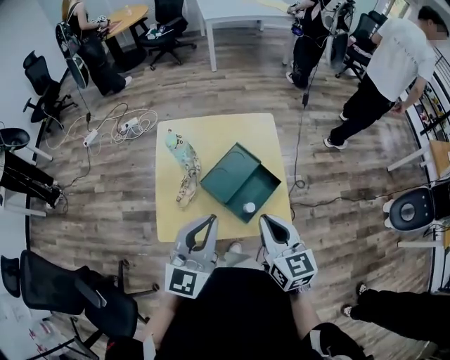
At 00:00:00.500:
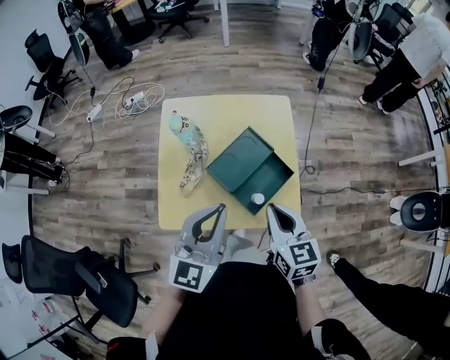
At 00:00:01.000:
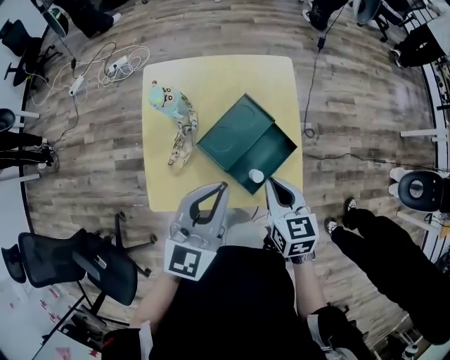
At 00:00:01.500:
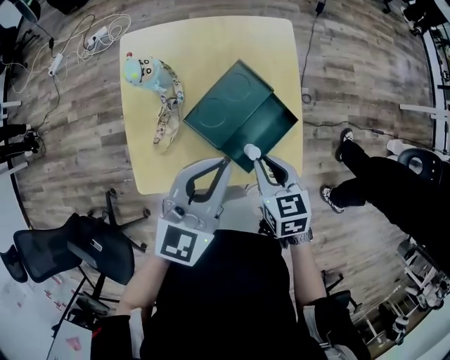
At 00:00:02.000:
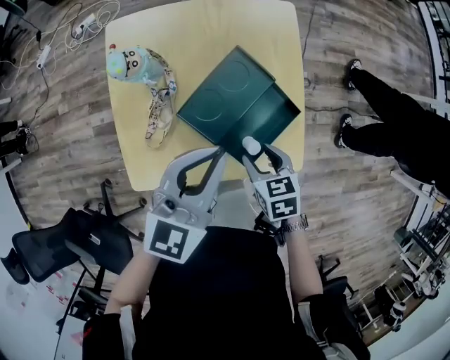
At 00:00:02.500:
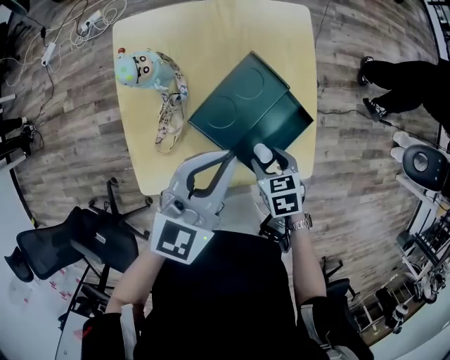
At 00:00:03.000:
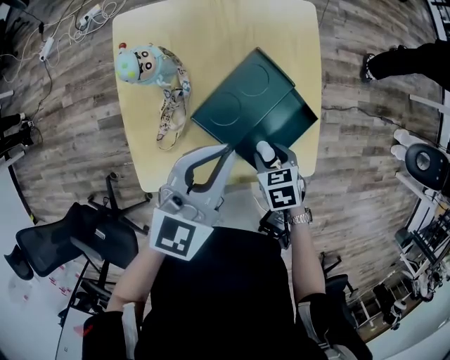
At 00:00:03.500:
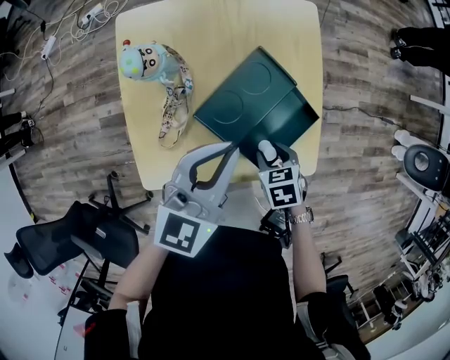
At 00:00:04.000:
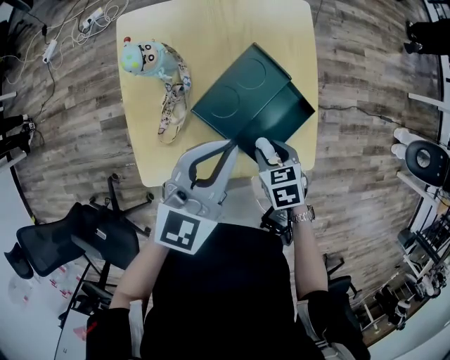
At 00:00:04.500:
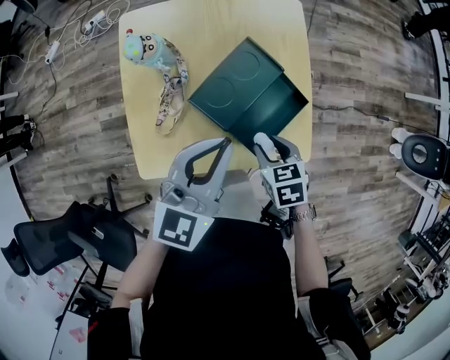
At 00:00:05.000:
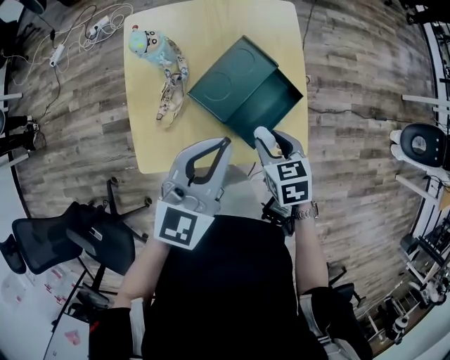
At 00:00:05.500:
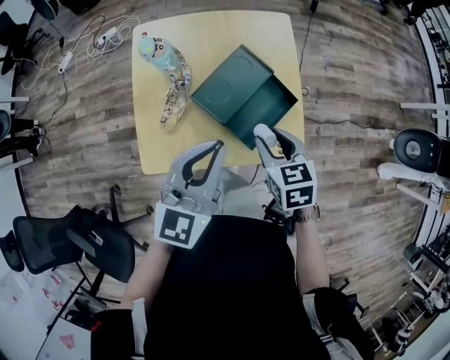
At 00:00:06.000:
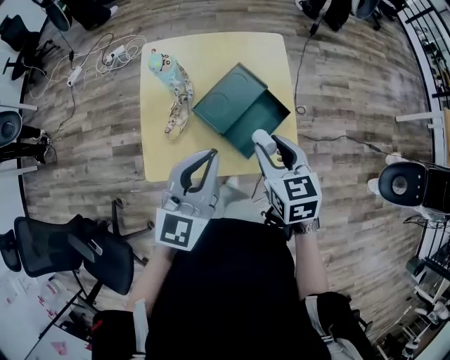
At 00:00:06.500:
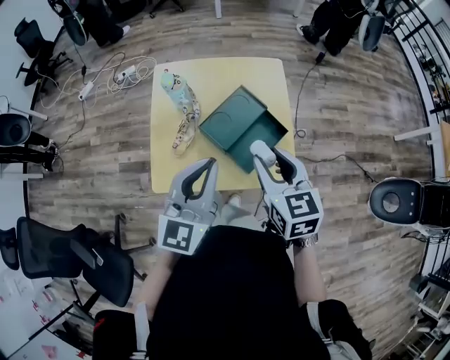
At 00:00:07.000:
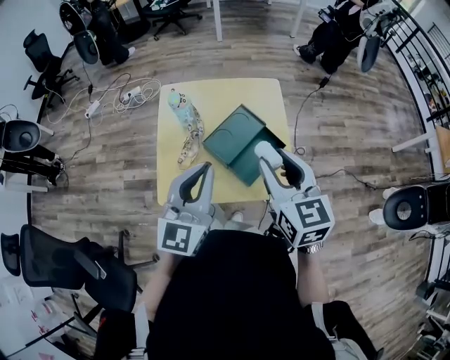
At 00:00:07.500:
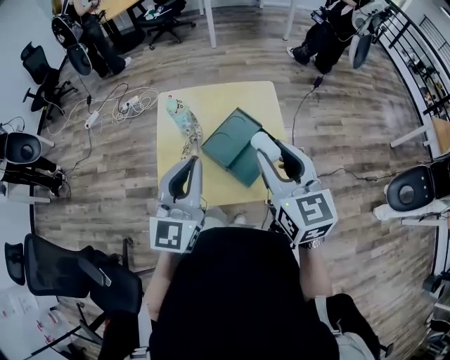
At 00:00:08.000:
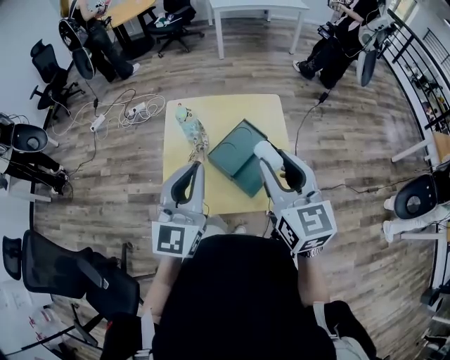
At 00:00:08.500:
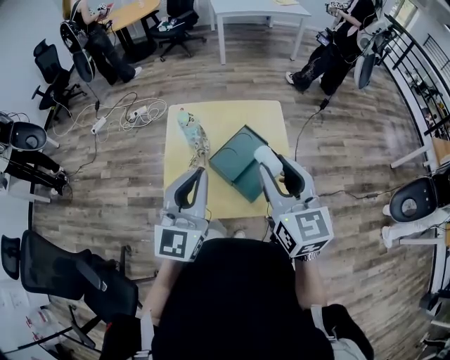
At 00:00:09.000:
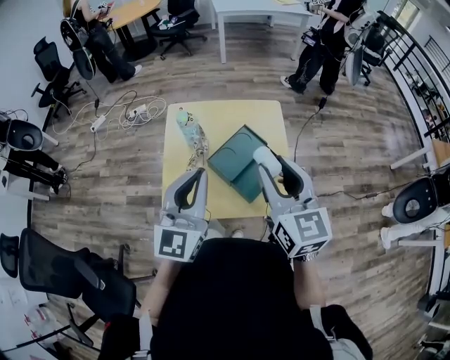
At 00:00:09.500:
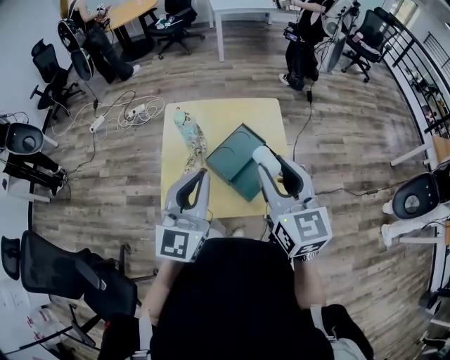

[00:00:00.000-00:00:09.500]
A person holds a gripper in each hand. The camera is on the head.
00:00:00.000 to 00:00:02.000: The right gripper shifts approximately 25 cm downward, points its fingers approximately 40 degrees further downward, and opens up; the left gripper goes about 15 cm forward and downward.
00:00:02.000 to 00:00:04.000: The grippers stay close to where they were, moving slightly.
00:00:04.000 to 00:00:05.500: The left gripper is displaced backward by some 10 cm, while the right gripper travels upward by about 15 cm, and changes its angle by some 20 degrees.
00:00:05.500 to 00:00:07.500: The right gripper goes approximately 25 cm upward, and angles its fingers upward, by approximately 40 degrees. The left gripper moves upward, about 15 cm.
00:00:07.500 to 00:00:09.500: The grippers make only small movements.

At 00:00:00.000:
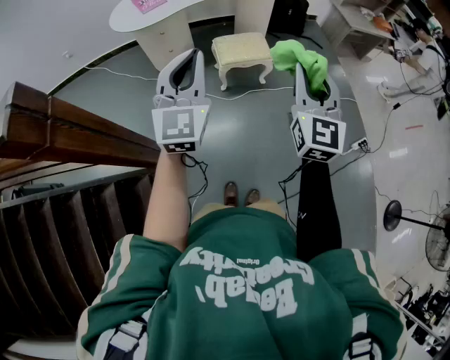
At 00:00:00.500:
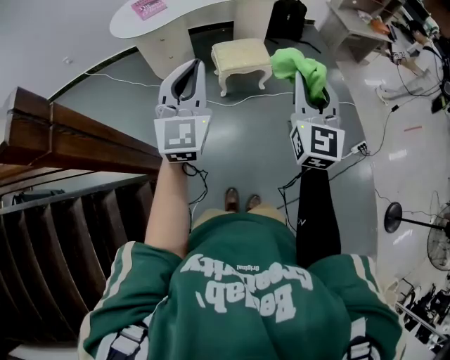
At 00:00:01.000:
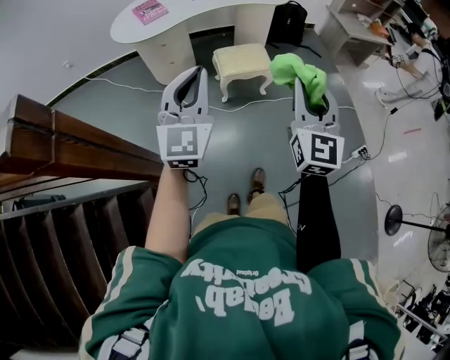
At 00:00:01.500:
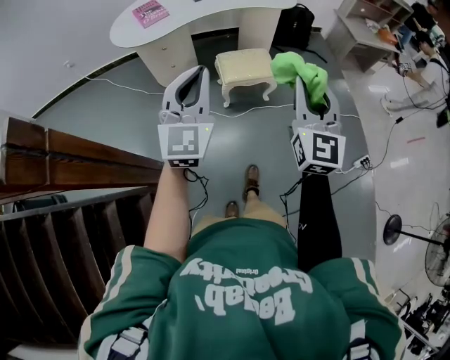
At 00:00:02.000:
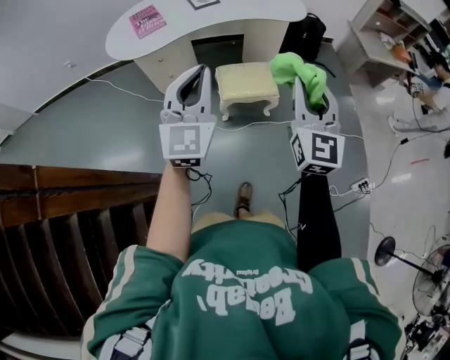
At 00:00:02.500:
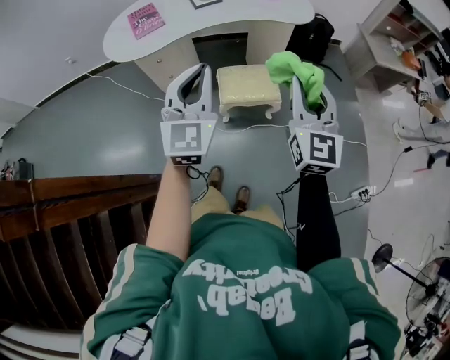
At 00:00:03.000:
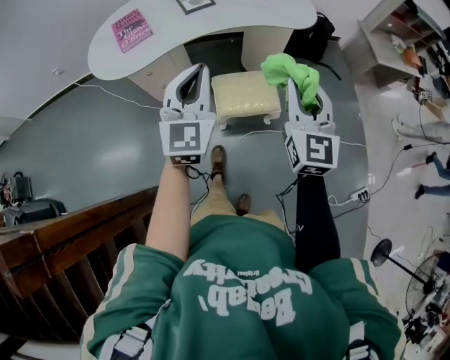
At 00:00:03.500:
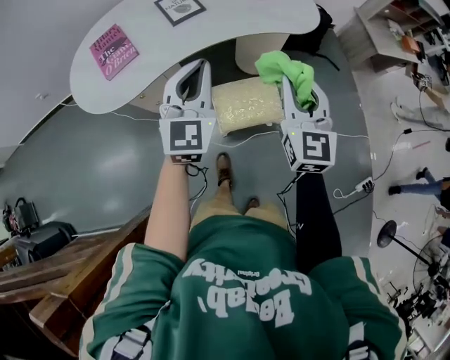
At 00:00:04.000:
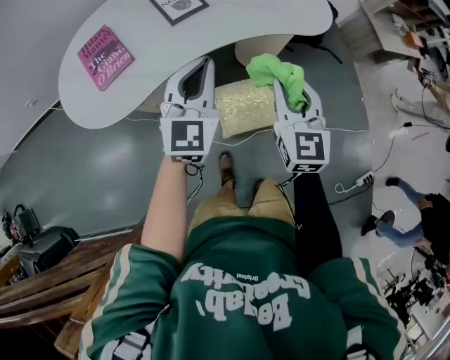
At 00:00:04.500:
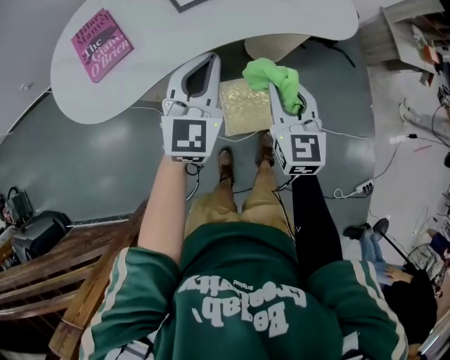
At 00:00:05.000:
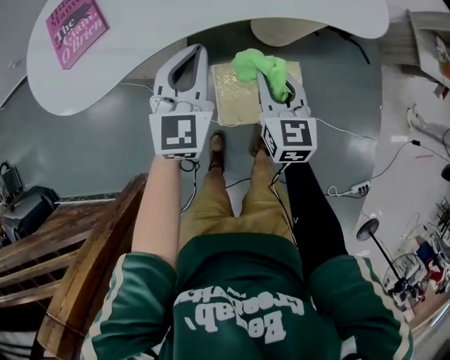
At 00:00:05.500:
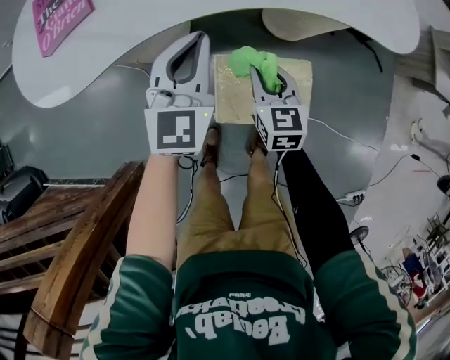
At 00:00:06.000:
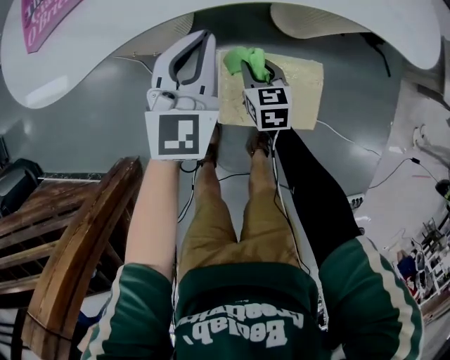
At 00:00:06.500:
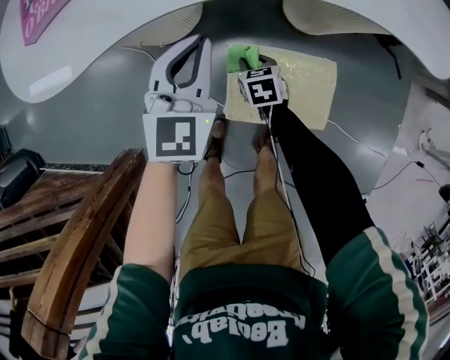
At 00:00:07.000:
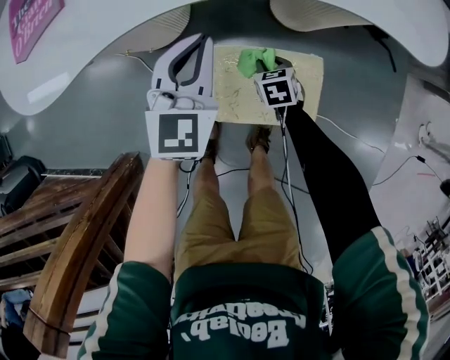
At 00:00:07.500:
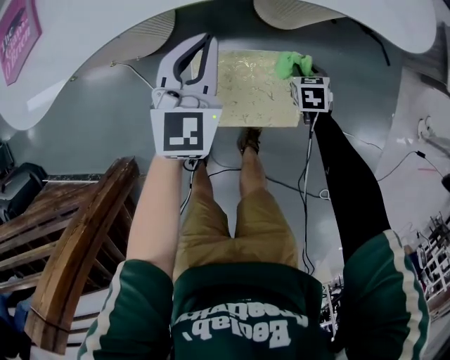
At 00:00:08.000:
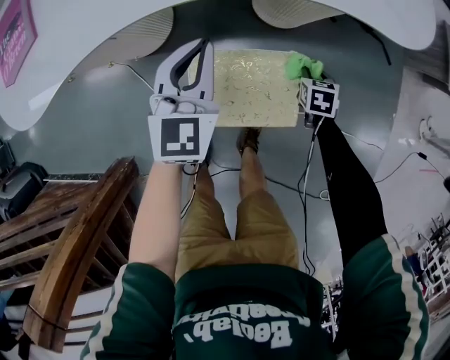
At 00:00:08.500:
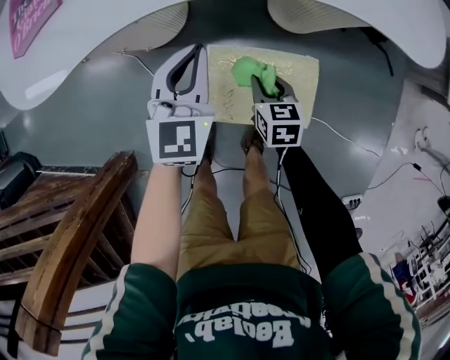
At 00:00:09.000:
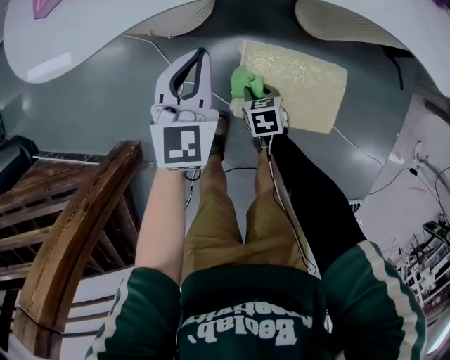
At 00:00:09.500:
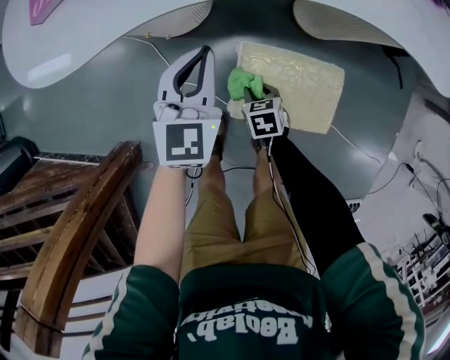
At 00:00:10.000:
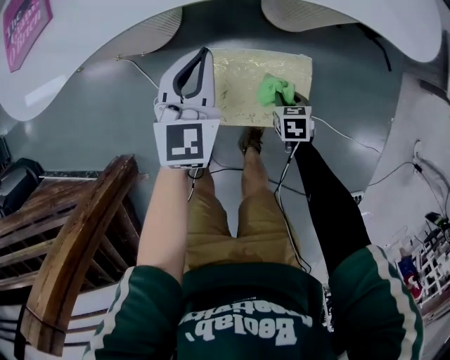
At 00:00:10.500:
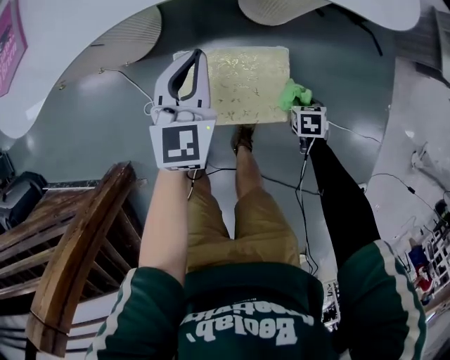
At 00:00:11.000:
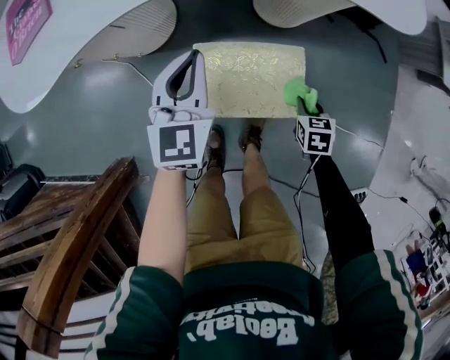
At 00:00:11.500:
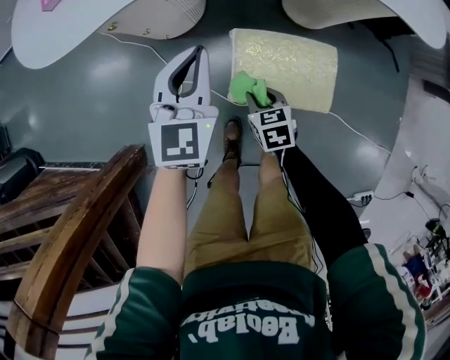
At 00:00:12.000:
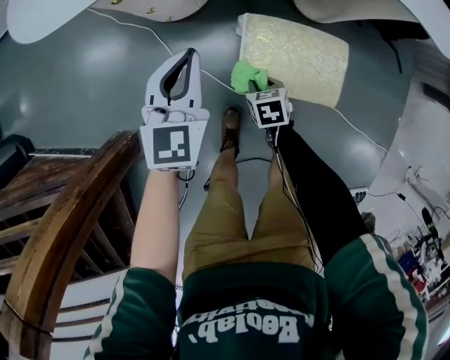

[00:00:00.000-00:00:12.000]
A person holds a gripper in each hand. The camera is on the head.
00:00:00.000 to 00:00:02.000: The two grippers go about 20 cm forward.
00:00:02.000 to 00:00:04.000: The two grippers go approximately 40 cm forward.
00:00:04.000 to 00:00:06.000: The left gripper travels downward by roughly 25 cm; the right gripper goes about 40 cm downward, and changes its angle by roughly 40 degrees.
00:00:06.000 to 00:00:08.000: The left gripper is displaced to the right by about 10 cm. The right gripper is displaced to the right by some 30 cm, and changes its angle by some 30 degrees.
00:00:08.000 to 00:00:10.000: The right gripper reaches about 10 cm upward, then returns.
00:00:10.000 to 00:00:12.000: The right gripper reaches some 5 cm upward, then returns, while the left gripper changes place by some 20 cm.

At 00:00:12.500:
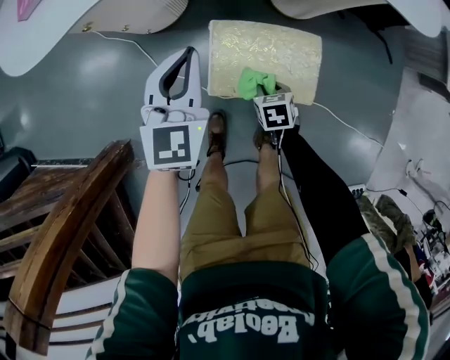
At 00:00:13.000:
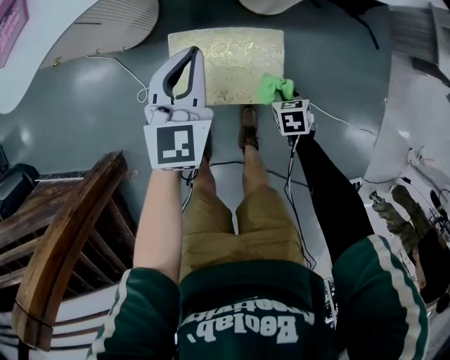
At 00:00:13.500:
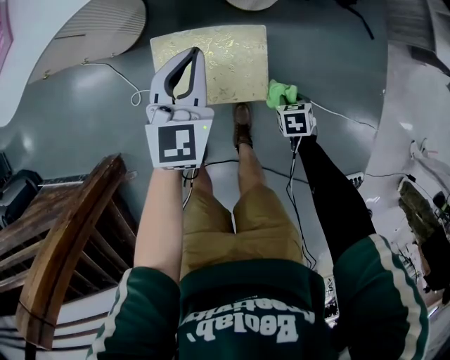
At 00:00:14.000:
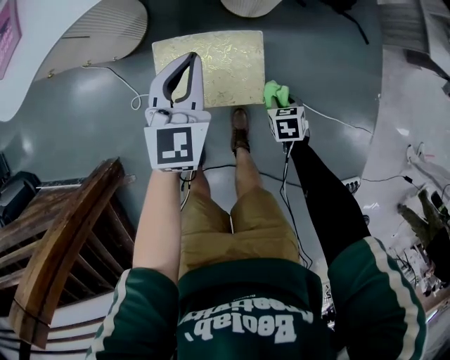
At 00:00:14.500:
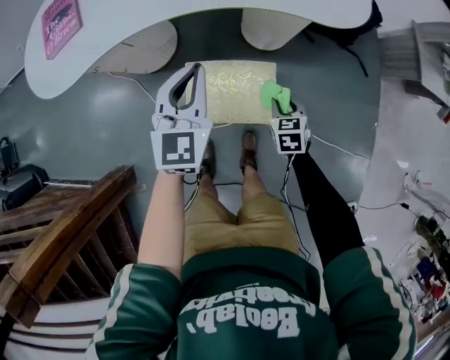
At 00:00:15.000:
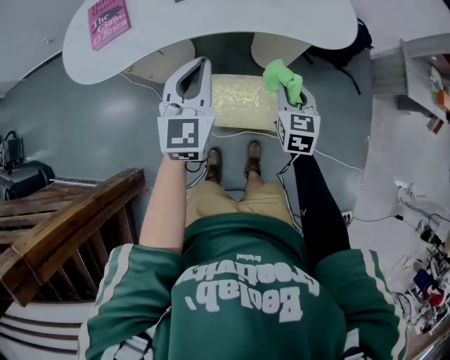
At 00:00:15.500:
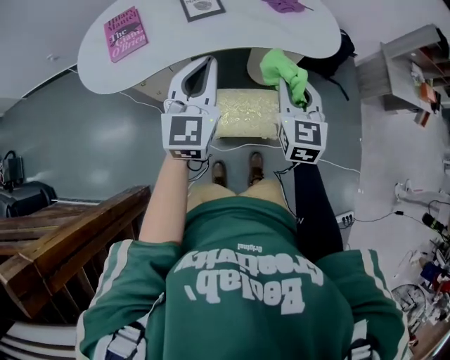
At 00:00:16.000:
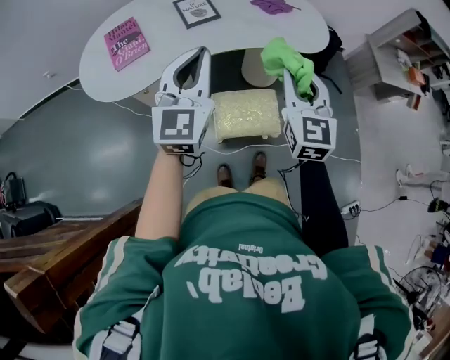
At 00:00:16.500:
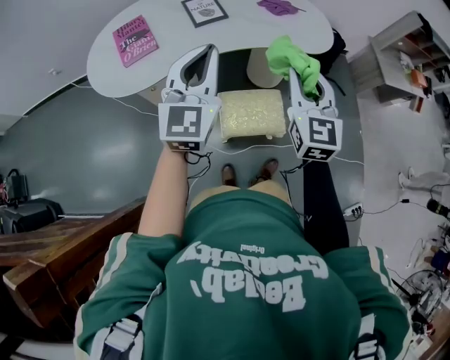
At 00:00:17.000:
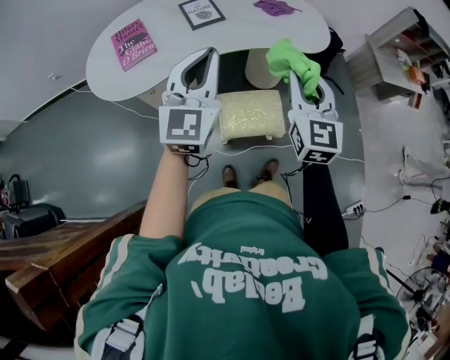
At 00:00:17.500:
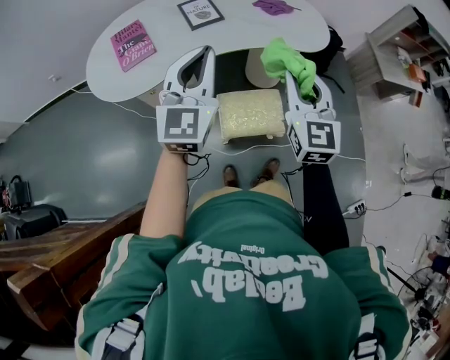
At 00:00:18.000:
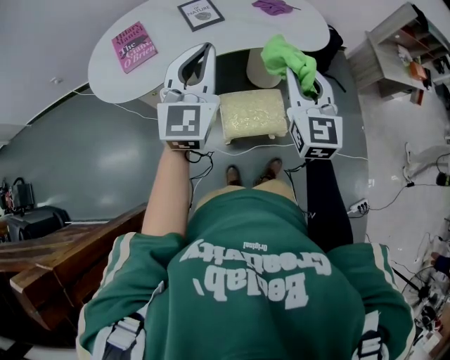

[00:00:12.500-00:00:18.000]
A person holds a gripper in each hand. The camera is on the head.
00:00:12.500 to 00:00:14.500: The right gripper moves approximately 25 cm, while the left gripper moves approximately 20 cm.
00:00:14.500 to 00:00:16.000: The right gripper travels upward by about 50 cm, and angles its fingers upward, by some 40 degrees, while the left gripper is displaced upward by approximately 30 cm, and swivels approximately 20 degrees.
00:00:16.000 to 00:00:18.000: The grippers stay close to where they were, moving slightly.
